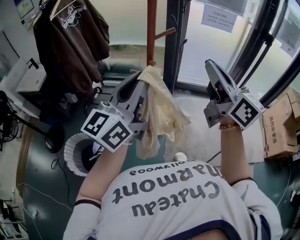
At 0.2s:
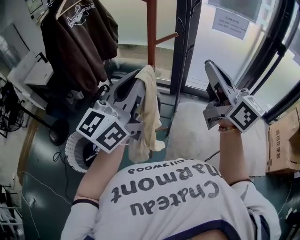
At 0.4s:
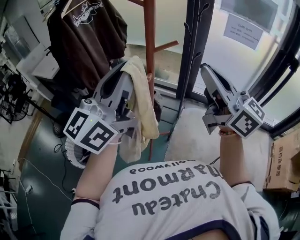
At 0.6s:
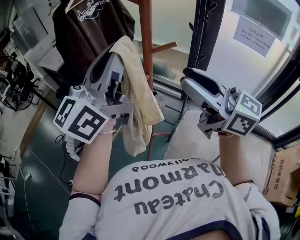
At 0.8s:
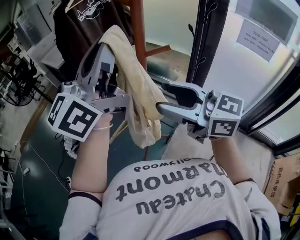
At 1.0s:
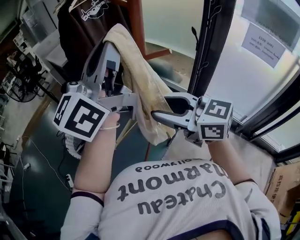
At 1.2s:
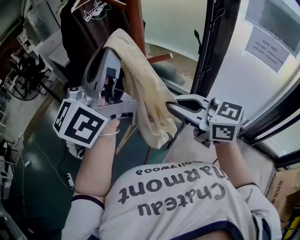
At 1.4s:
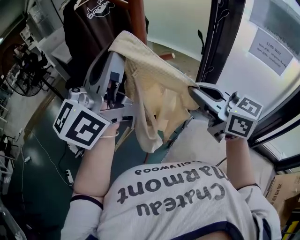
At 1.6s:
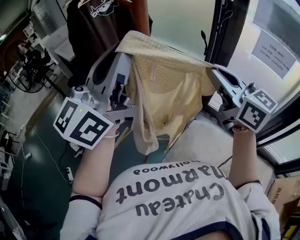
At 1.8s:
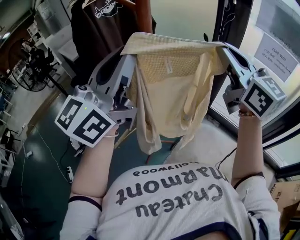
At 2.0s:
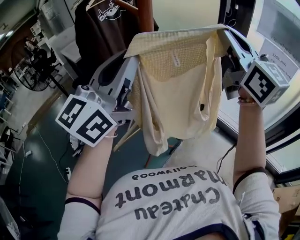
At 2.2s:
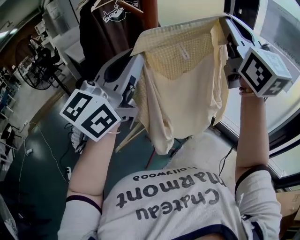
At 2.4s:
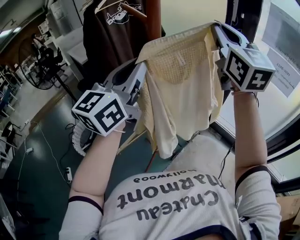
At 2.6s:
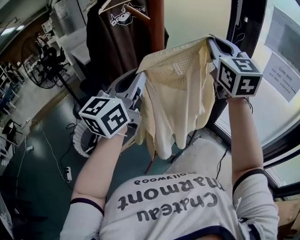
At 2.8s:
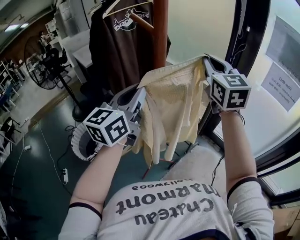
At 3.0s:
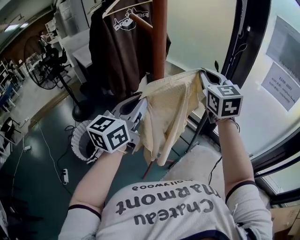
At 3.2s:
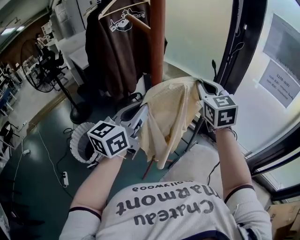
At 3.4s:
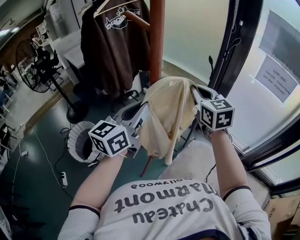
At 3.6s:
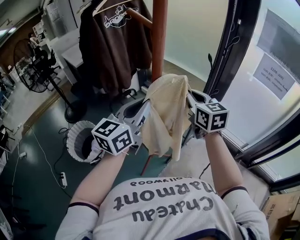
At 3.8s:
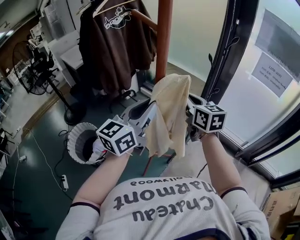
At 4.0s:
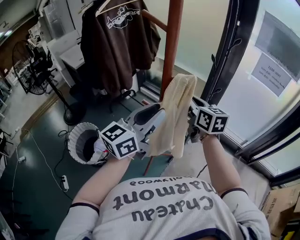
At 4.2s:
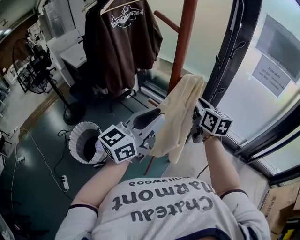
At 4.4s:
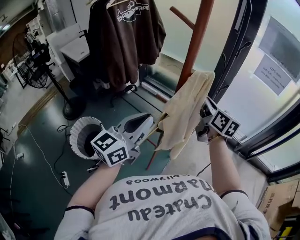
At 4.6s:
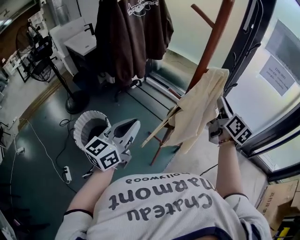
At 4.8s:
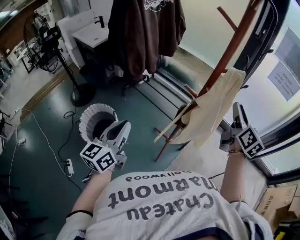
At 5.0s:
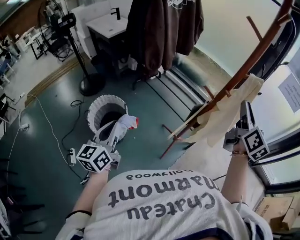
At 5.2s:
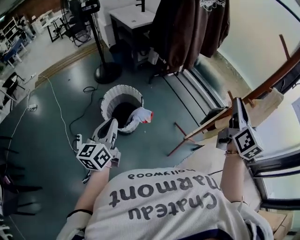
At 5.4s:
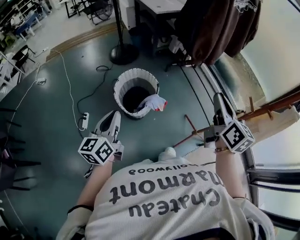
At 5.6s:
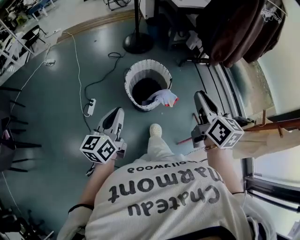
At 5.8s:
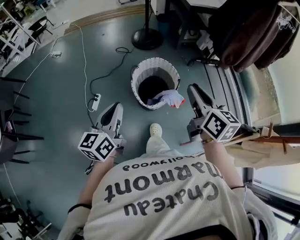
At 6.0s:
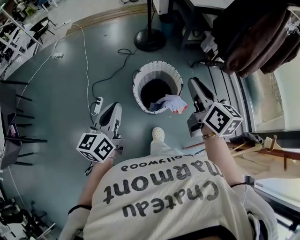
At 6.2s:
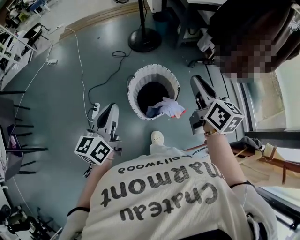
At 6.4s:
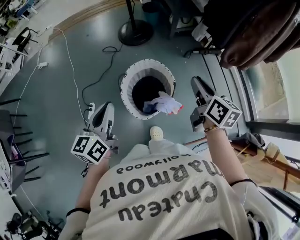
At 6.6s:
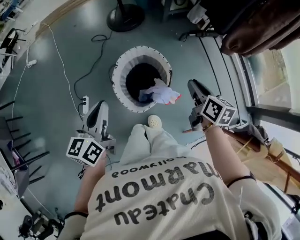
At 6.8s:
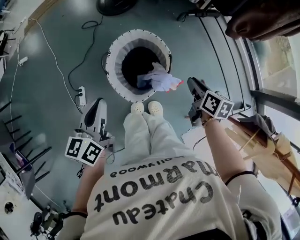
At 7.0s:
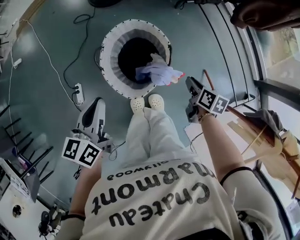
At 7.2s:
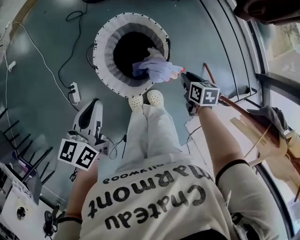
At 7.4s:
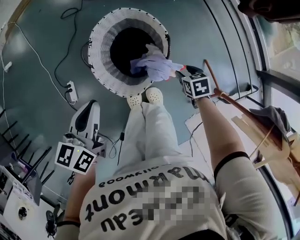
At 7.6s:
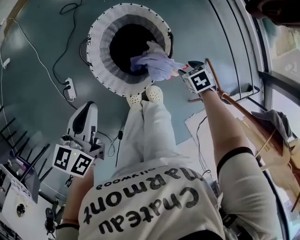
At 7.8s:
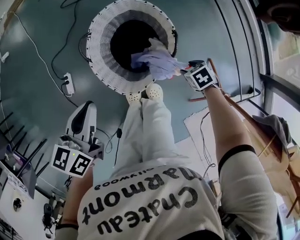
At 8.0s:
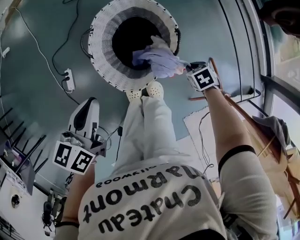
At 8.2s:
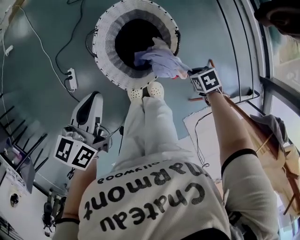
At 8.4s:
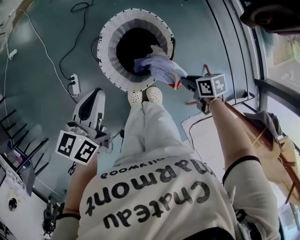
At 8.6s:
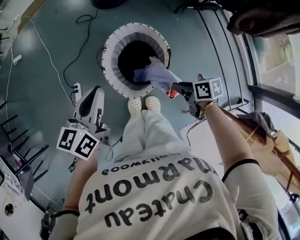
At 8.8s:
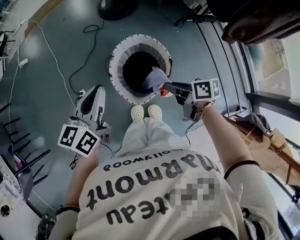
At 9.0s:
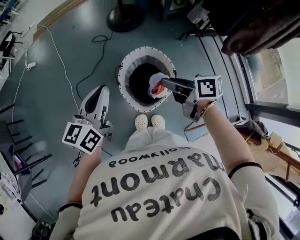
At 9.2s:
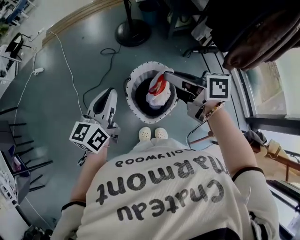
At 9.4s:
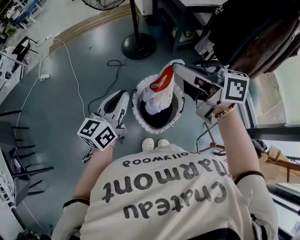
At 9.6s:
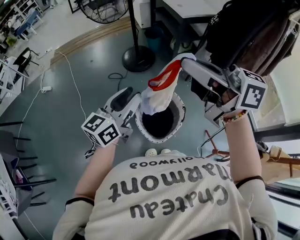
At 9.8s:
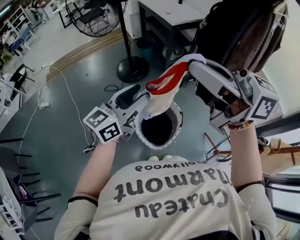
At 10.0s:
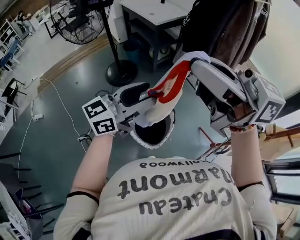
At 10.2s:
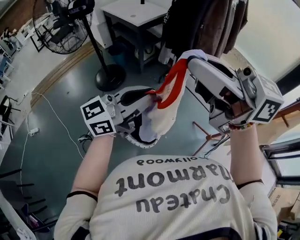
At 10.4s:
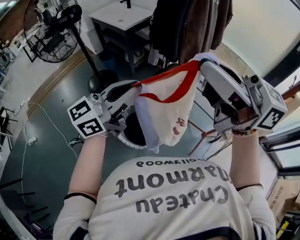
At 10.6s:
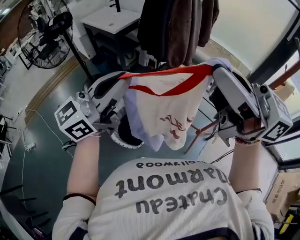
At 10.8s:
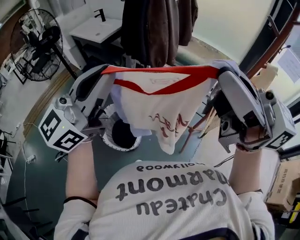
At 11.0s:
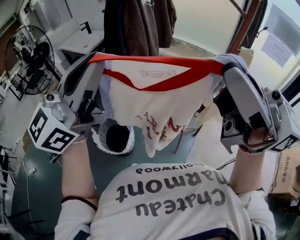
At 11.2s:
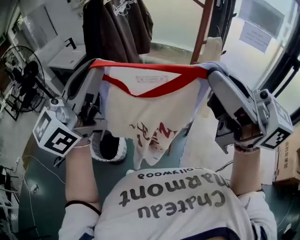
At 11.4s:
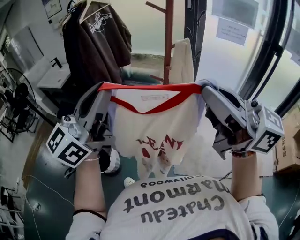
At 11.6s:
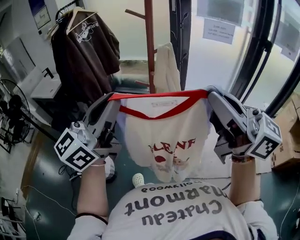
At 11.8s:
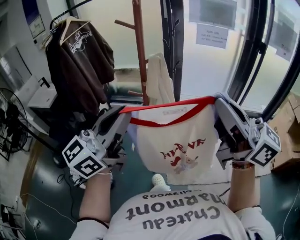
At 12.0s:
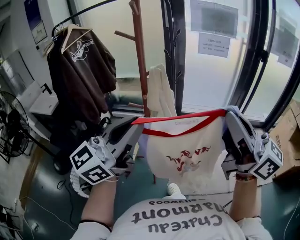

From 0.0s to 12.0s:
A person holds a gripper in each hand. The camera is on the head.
From 0.0s to 1.6s: The right gripper moves some 10 cm downward and comes back, rotates some 30 degrees, and opens and closes again. The left gripper shifts by about 15 cm, and turns by roughly 30 degrees.
From 1.6s to 3.0s: The left gripper shifts some 15 cm downward, and changes its angle by approximately 30 degrees, while the right gripper shifts about 15 cm forward, moves some 15 cm upward and comes back, and rotates roughly 20 degrees.
From 3.0s to 4.4s: The right gripper shifts about 15 cm downward and backward, and swivels approximately 40 degrees. The left gripper travels backward and to the left by about 10 cm.
From 4.4s to 6.0s: Both grippers are carried some 60 cm. The left gripper swivels roughly 70 degrees. The right gripper rotates some 50 degrees.
From 6.0s to 7.6s: The left gripper goes about 30 cm downward and forward, and changes its angle by some 30 degrees; the right gripper shifts roughly 60 cm downward, angles its fingers downward, by some 60 degrees, and opens.
From 7.6s to 9.0s: The left gripper travels upward by roughly 20 cm, and rotates about 20 degrees; the right gripper heads upward, covering roughly 40 cm, angles its fingers upward, by approximately 50 degrees, and closes up.
From 9.0s to 10.4s: The right gripper shifts some 50 cm upward, and angles its fingers upward, by roughly 30 degrees. Meanwhile the left gripper shifts roughly 25 cm upward, rotates about 60 degrees, and opens, then closes once more.
From 10.4s to 12.0s: The two grippers travel together, about 60 cm. The right gripper rotates about 60 degrees. The left gripper swivels some 30 degrees.

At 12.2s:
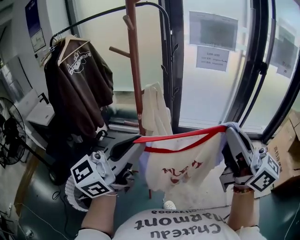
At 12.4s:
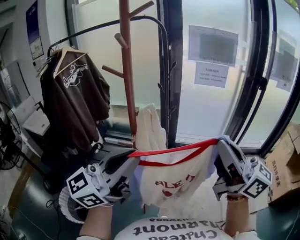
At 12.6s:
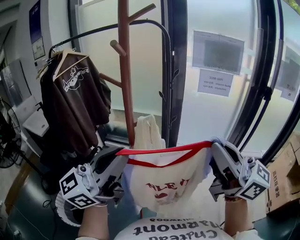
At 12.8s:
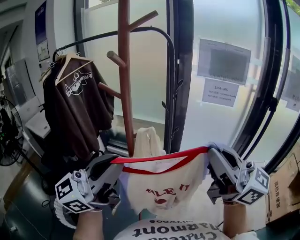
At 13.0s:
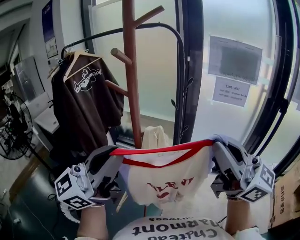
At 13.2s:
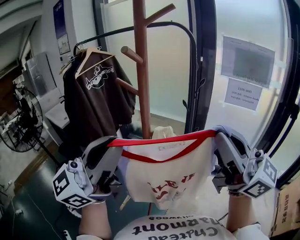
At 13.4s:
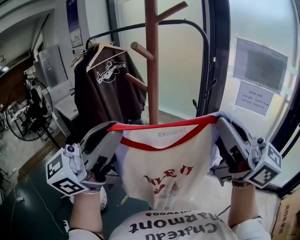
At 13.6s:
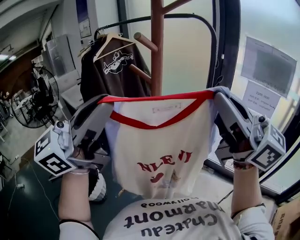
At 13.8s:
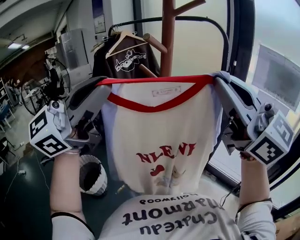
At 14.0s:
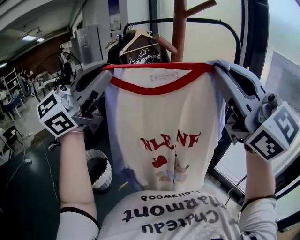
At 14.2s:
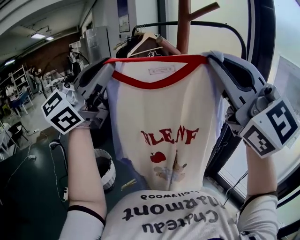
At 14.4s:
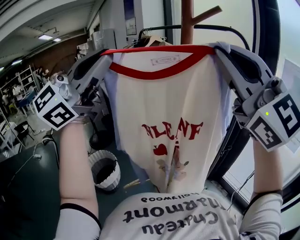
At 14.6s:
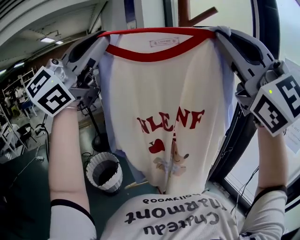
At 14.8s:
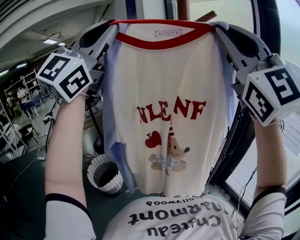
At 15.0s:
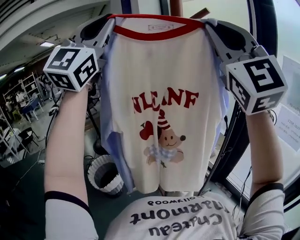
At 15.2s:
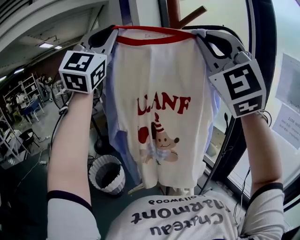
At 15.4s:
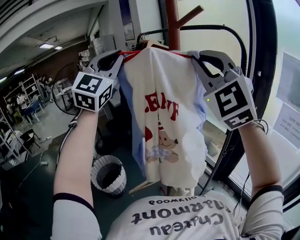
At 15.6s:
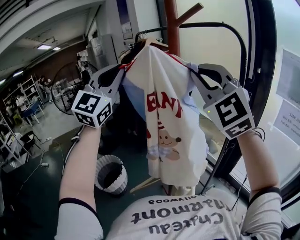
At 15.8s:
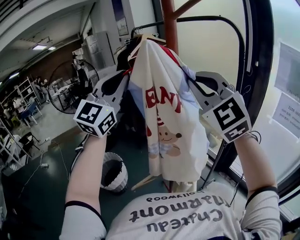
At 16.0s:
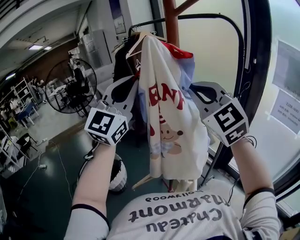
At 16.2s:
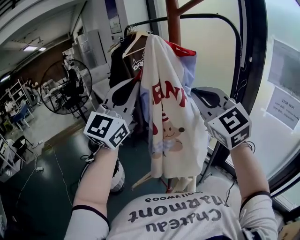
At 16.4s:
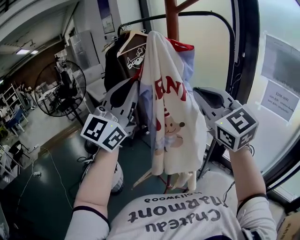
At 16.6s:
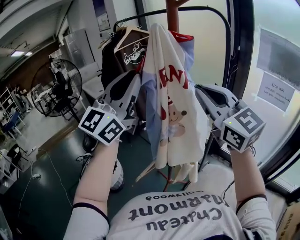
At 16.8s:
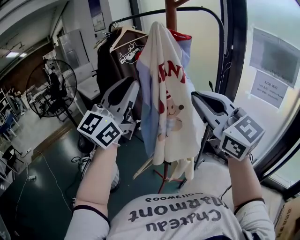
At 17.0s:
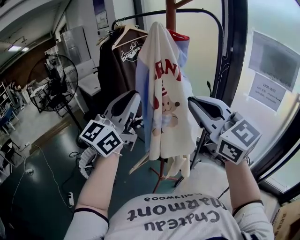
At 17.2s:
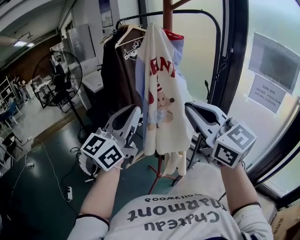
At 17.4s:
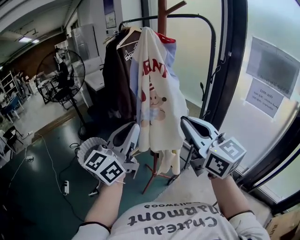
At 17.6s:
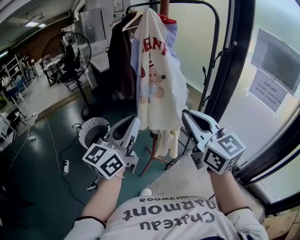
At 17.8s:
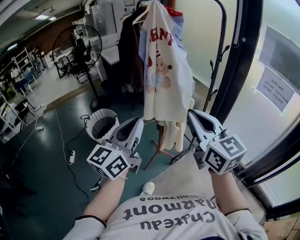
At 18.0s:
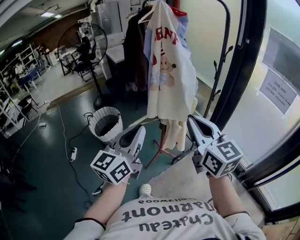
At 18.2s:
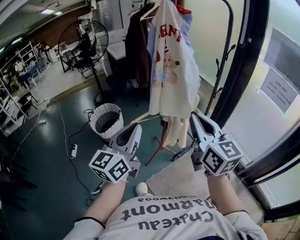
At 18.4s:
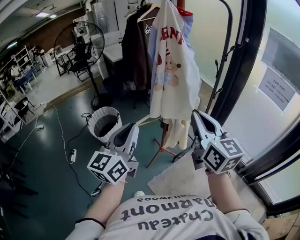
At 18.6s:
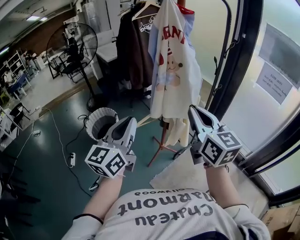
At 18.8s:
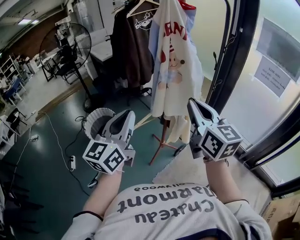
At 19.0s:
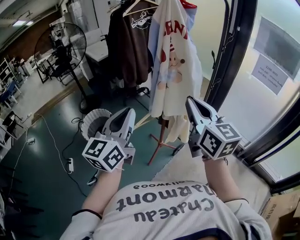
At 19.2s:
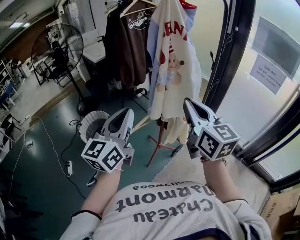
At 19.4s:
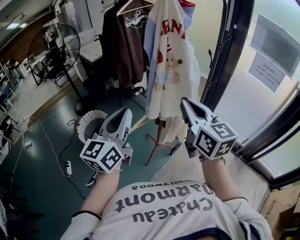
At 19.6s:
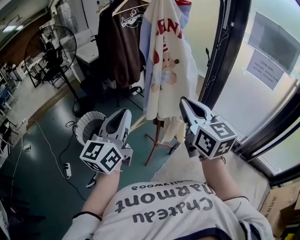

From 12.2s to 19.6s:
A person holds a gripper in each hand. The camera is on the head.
From 12.2s to 13.6s: The left gripper shifts approximately 15 cm upward, and swivels approximately 30 degrees, while the right gripper changes place by some 25 cm, and swivels about 40 degrees.
From 13.6s to 15.2s: The right gripper shifts about 15 cm forward and upward, and rotates around the line of its fingers by approximately 60 degrees, counterclockwise from behind; the left gripper goes about 20 cm upward and forward, and rolls clockwise, seen from behind, by approximately 60 degrees.
From 15.2s to 16.6s: Both grippers travel together downward, roughly 20 cm. The left gripper rotates around the line of its fingers by about 50 degrees, counterclockwise from behind; the right gripper turns by approximately 40 degrees.
From 16.6s to 18.2s: Both grippers move backward and downward, roughly 30 cm. The left gripper turns by some 40 degrees; the right gripper turns by about 30 degrees.
From 18.2s to 19.6s: Both grippers travel together forward and to the left, some 15 cm.

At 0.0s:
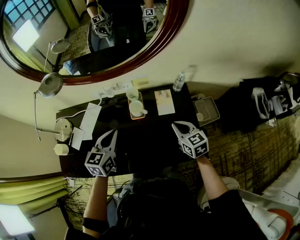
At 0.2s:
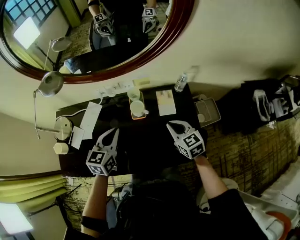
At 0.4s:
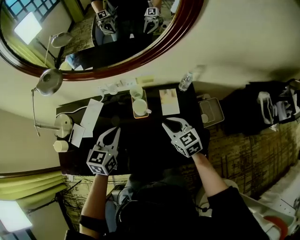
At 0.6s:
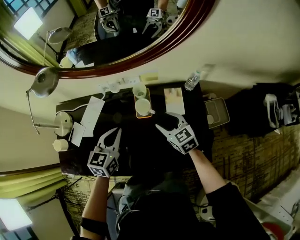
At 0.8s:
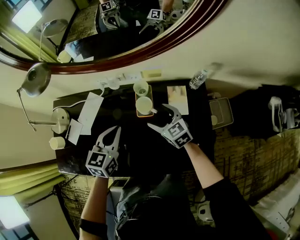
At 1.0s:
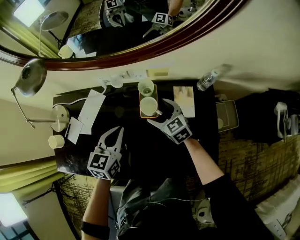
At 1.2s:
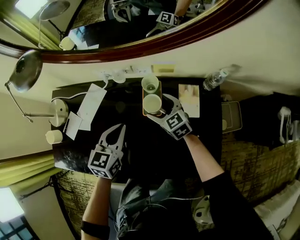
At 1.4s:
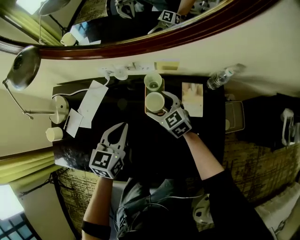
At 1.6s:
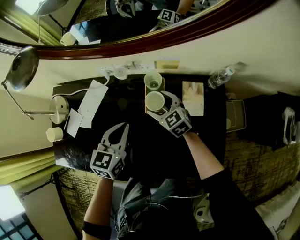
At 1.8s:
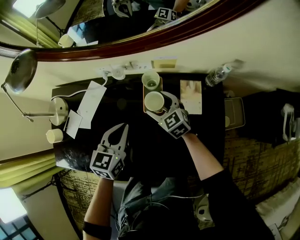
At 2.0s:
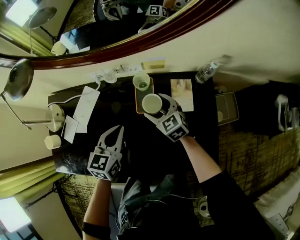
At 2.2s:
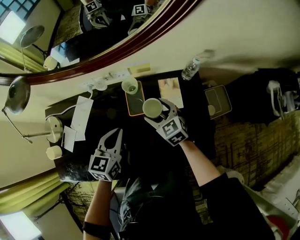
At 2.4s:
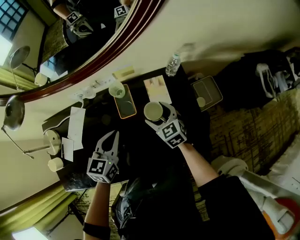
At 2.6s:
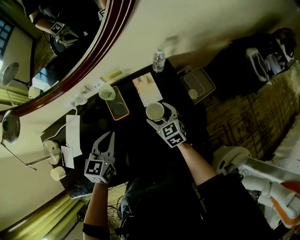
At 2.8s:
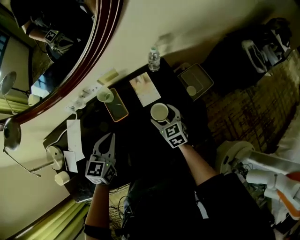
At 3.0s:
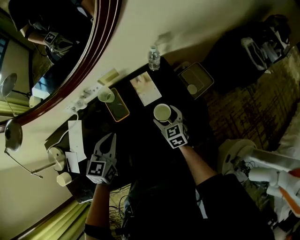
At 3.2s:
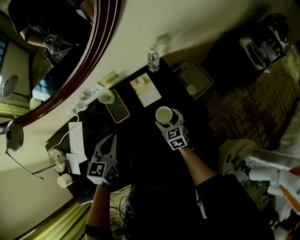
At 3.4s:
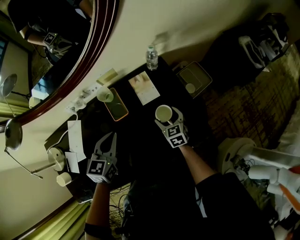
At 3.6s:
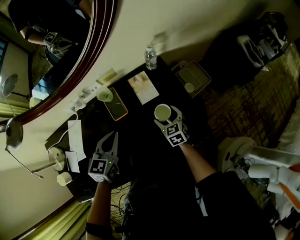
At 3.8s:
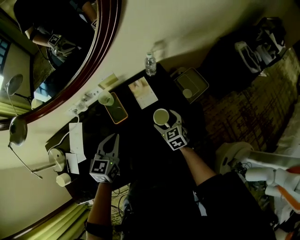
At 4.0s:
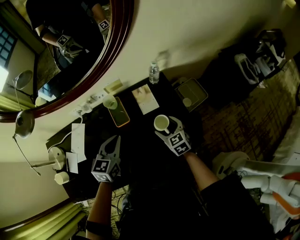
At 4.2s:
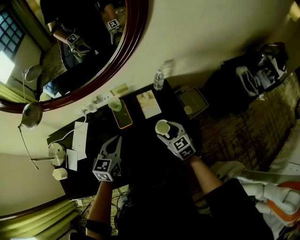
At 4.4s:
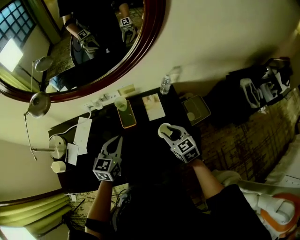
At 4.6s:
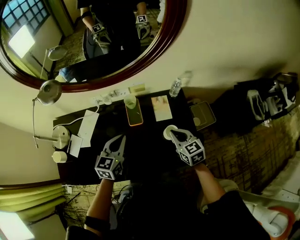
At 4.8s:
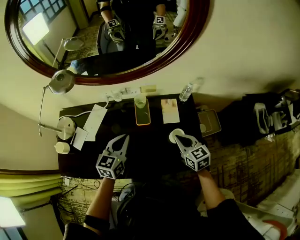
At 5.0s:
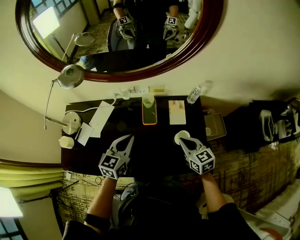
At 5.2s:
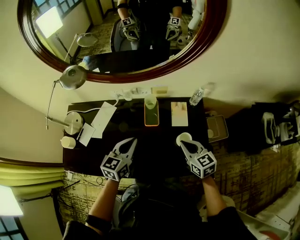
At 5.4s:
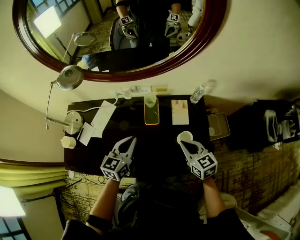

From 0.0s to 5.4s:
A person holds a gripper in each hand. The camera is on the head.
From 0.0s to 1.4s: The left gripper shifts approximately 15 cm downward and forward. The right gripper travels forward, to the left and downward by approximately 30 cm, turns by approximately 30 degrees, and opens up.
From 1.4s to 2.8s: The right gripper shifts by approximately 25 cm, and swivels roughly 40 degrees, while the left gripper ends up about 10 cm from where it was, and turns by about 20 degrees.
From 2.8s to 4.0s: The right gripper shifts by about 5 cm.
From 4.0s to 5.4s: The right gripper goes about 15 cm upward and to the left, swivels about 20 degrees, and closes its fingers. The left gripper shifts some 5 cm to the left.
